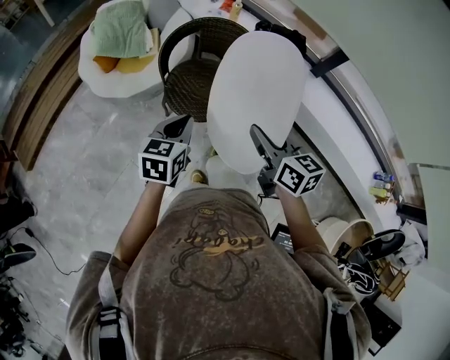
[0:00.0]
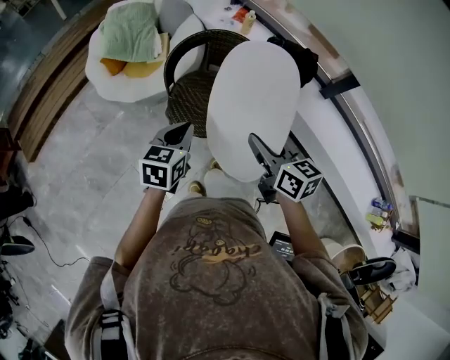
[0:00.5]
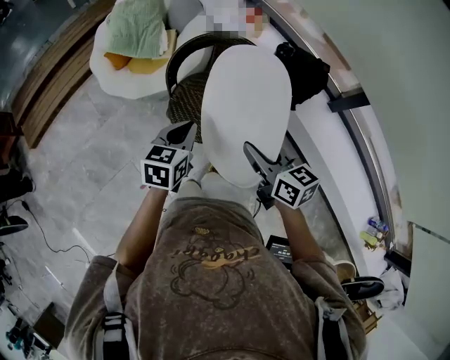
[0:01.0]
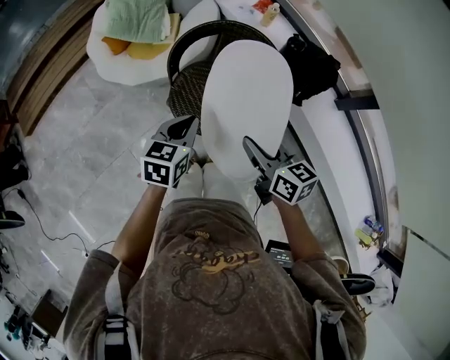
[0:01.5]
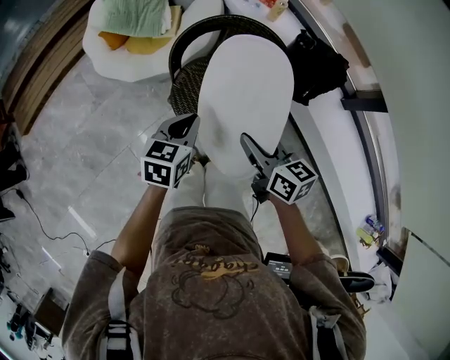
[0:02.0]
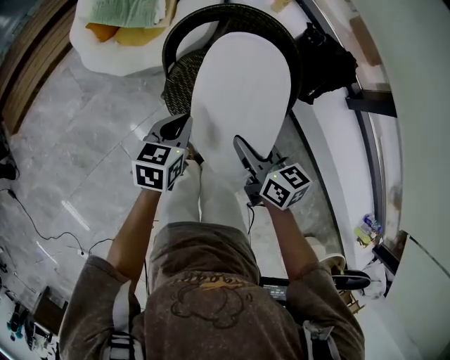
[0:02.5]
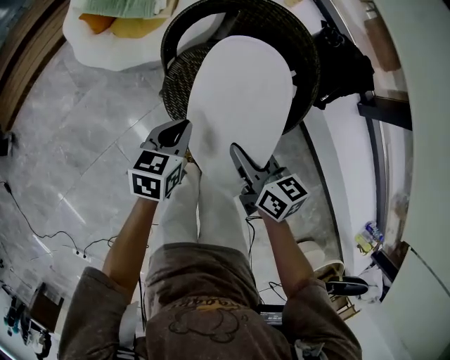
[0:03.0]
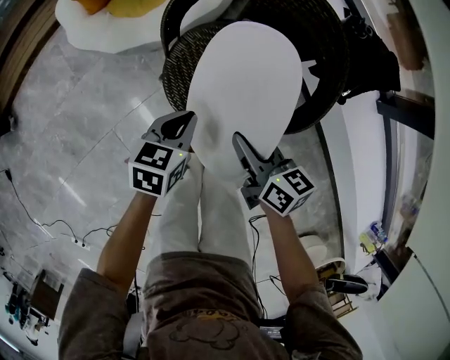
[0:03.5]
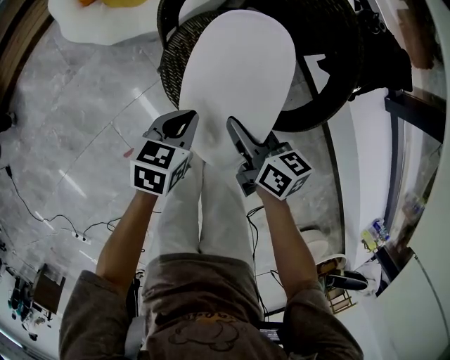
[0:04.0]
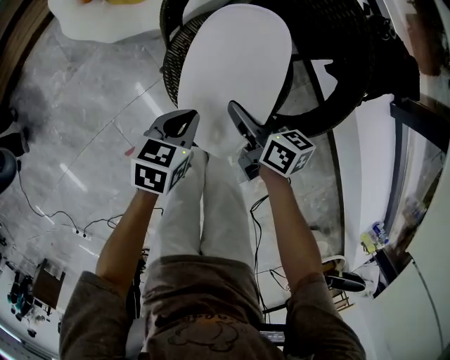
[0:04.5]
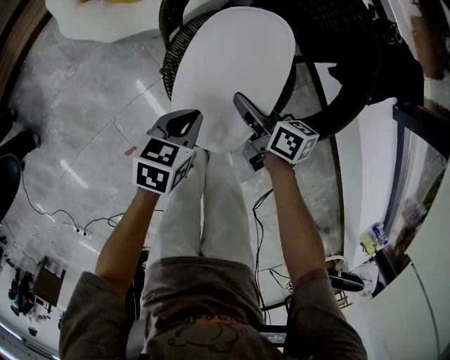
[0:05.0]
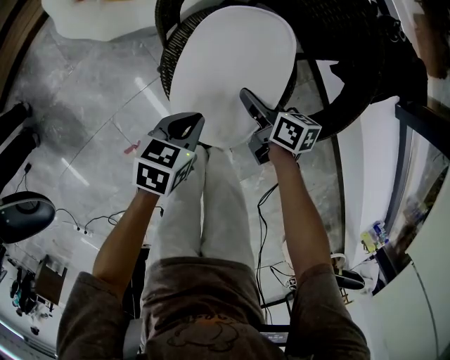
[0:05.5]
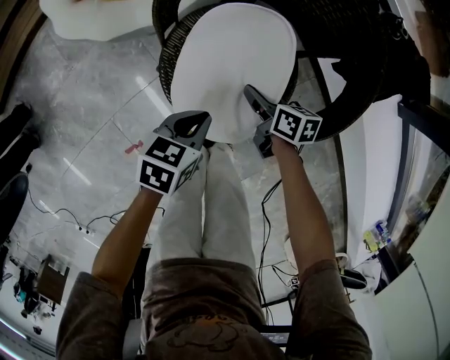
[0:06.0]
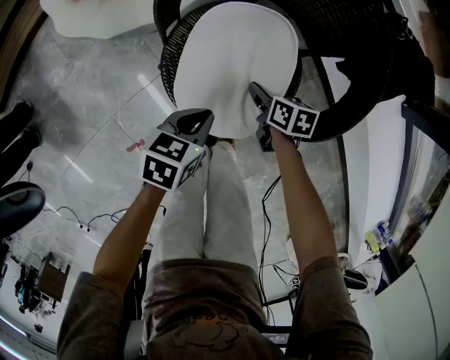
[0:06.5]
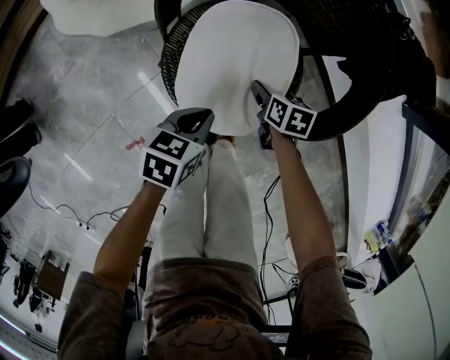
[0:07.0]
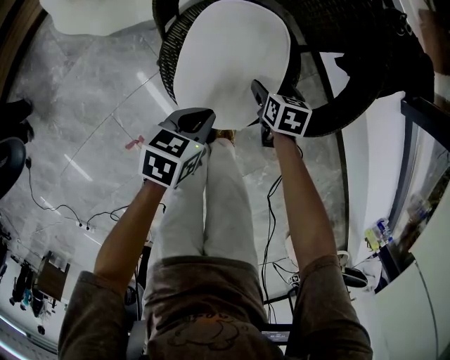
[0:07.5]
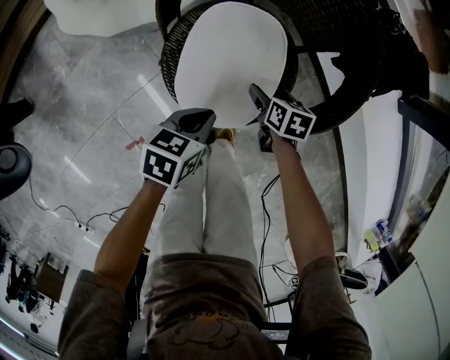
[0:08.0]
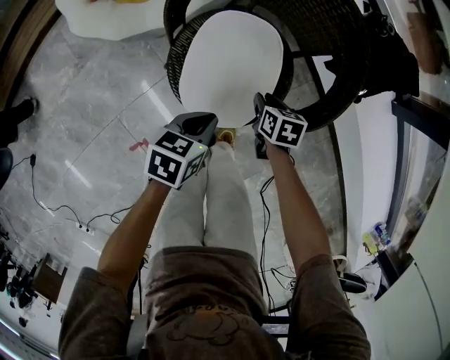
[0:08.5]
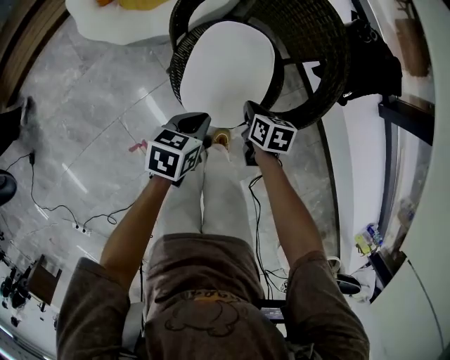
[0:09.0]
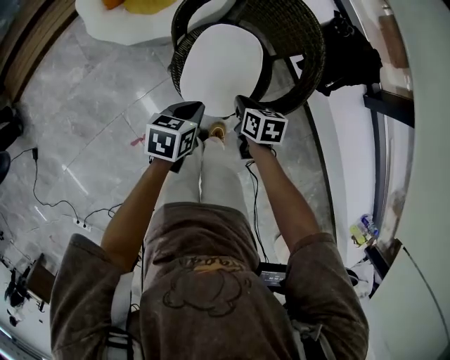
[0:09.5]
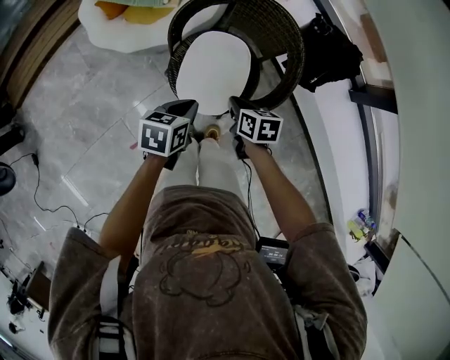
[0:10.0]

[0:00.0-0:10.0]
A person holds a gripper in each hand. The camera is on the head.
0:00.0 to 0:02.0: Both grippers travel together forward and downward, some 20 cm.
0:02.0 to 0:04.0: Both grippers move downward, roughly 25 cm.
0:04.0 to 0:06.0: The left gripper changes place by about 5 cm, while the right gripper goes some 15 cm downward and forward.
0:06.0 to 0:08.0: The right gripper travels to the right by approximately 5 cm, changes its angle by roughly 20 degrees, and opens up.
0:08.0 to 0:10.0: The two grippers go some 25 cm upward. The right gripper closes its fingers.

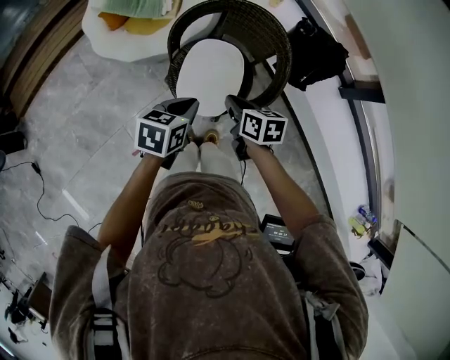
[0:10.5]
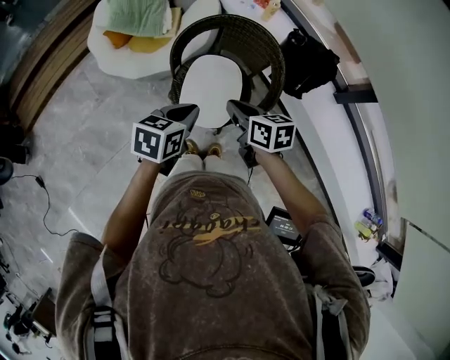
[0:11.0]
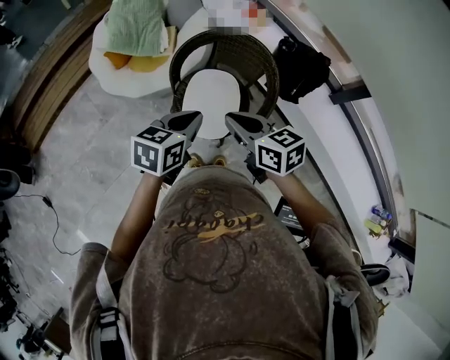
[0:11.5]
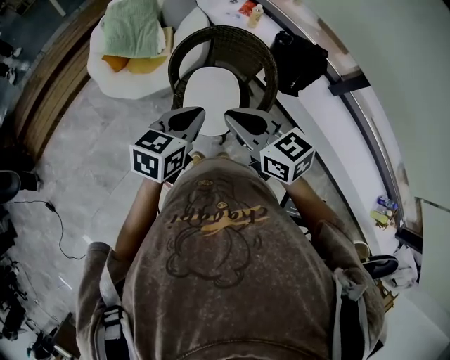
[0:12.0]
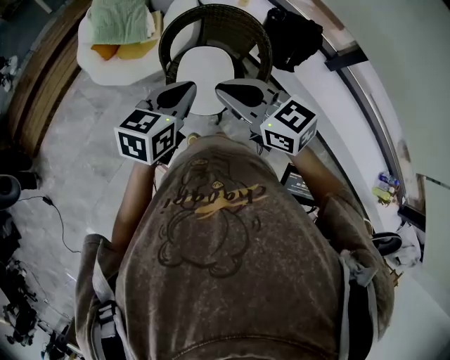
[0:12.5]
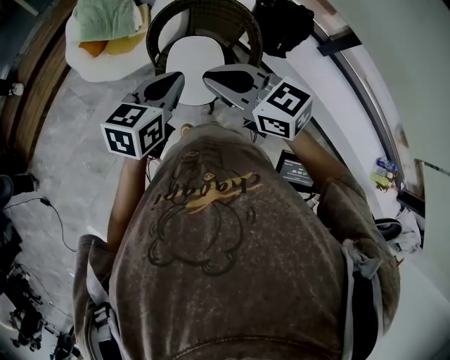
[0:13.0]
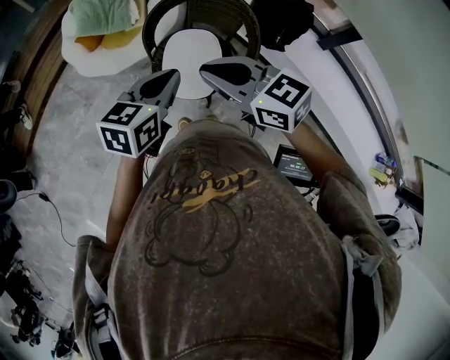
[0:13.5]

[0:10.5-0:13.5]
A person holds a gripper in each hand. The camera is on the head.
0:10.5 to 0:12.0: The right gripper moves upward, approximately 20 cm, and rotates about 40 degrees, while the left gripper moves upward, approximately 15 cm, and changes its angle by about 20 degrees.
0:12.0 to 0:13.5: The grippers make only small movements.

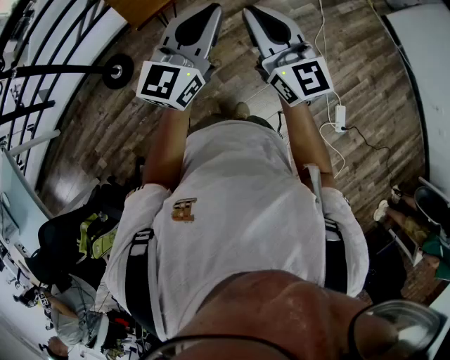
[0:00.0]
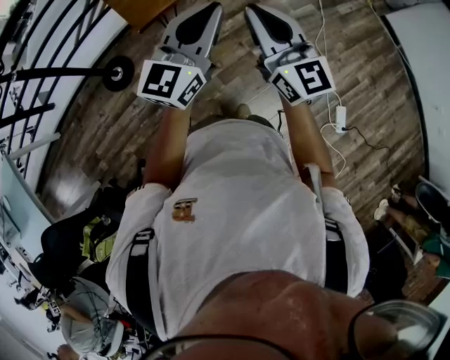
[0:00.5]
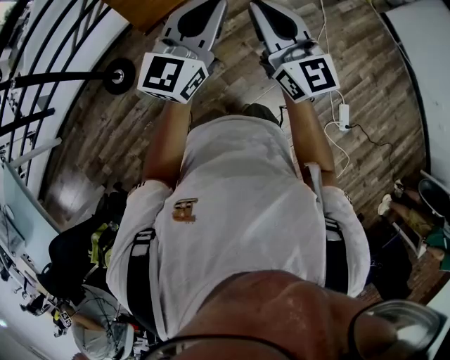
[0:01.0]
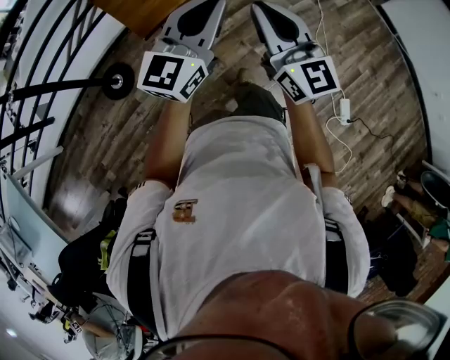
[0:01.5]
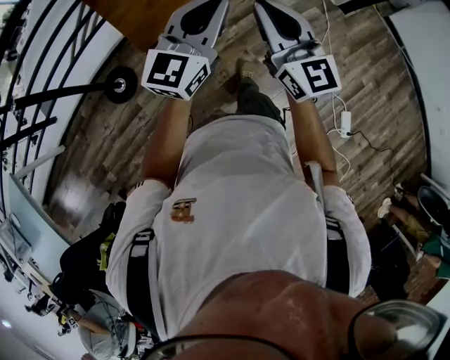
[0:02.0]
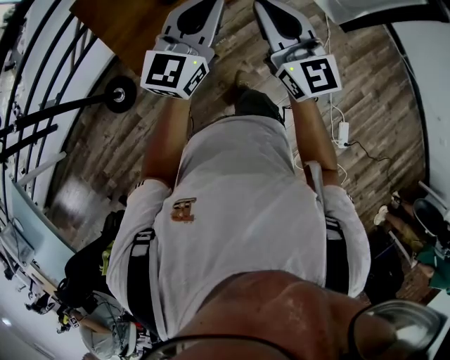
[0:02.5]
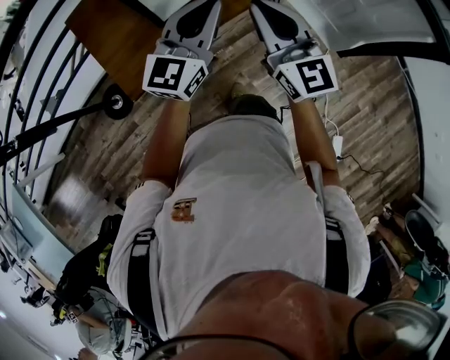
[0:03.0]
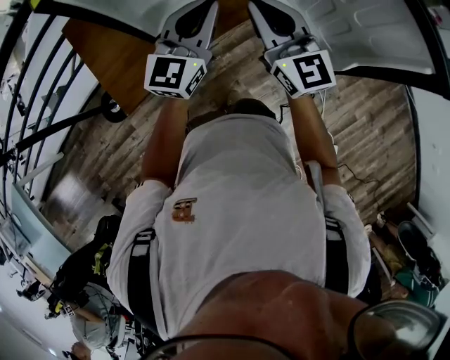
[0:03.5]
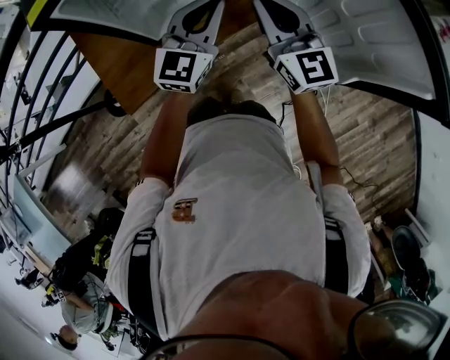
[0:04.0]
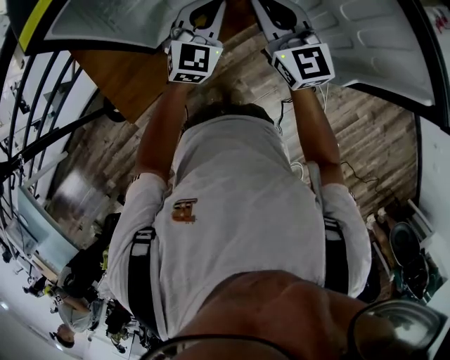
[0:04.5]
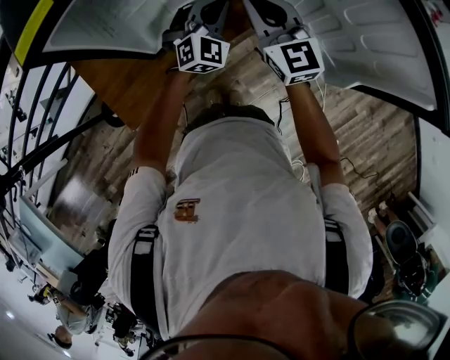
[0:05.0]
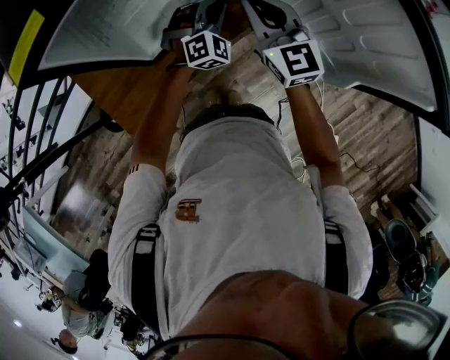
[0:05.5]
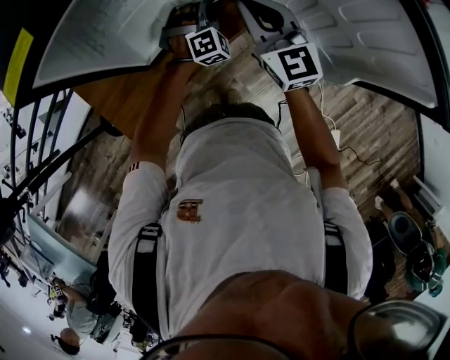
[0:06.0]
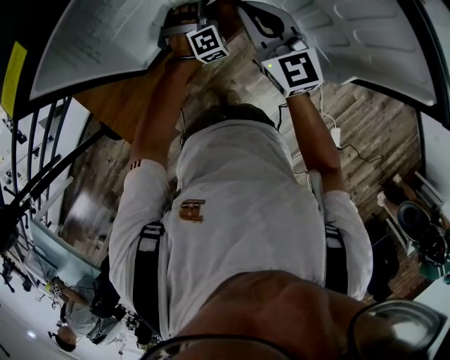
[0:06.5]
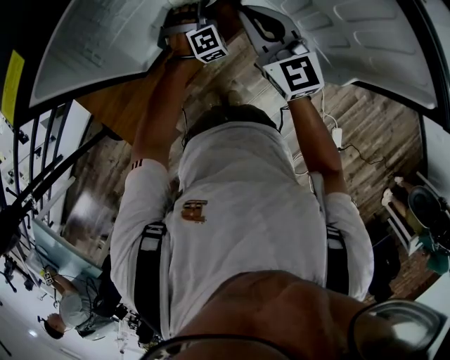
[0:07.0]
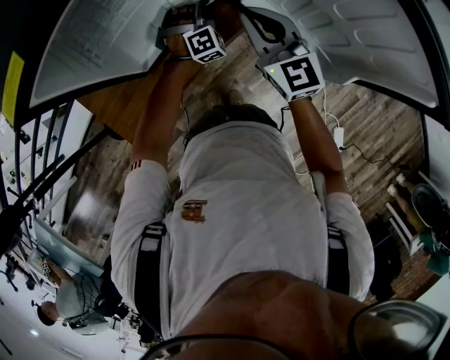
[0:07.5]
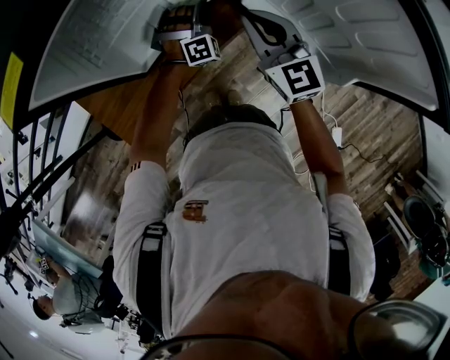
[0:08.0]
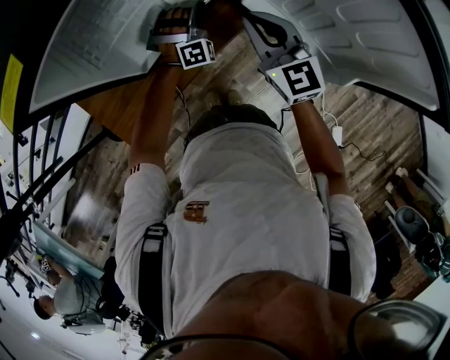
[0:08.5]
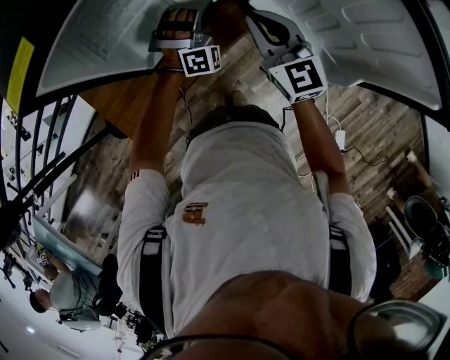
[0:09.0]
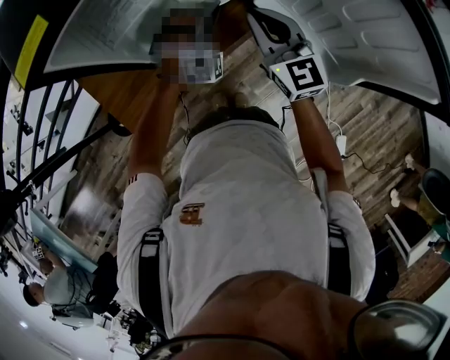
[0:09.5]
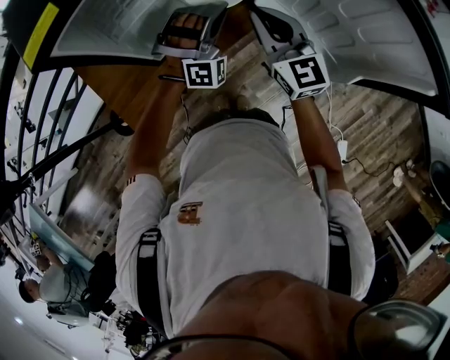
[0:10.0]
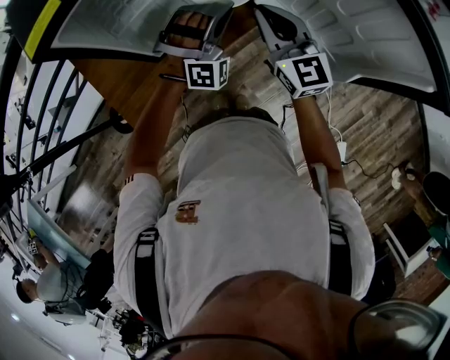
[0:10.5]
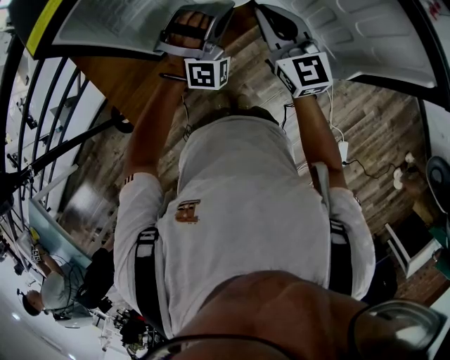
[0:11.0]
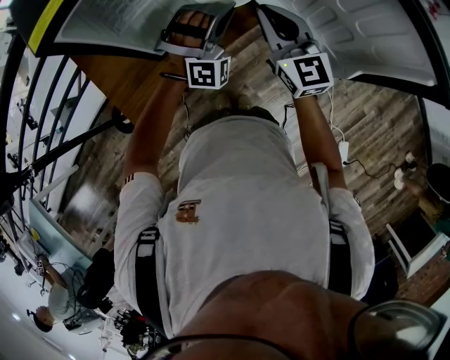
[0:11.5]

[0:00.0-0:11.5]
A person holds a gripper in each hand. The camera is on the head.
0:00.0 to 0:02.0: Both grippers move forward, about 15 cm.
0:02.0 to 0:04.0: Both grippers are carried forward, about 40 cm.
0:04.0 to 0:06.0: The right gripper travels forward by about 5 cm. The left gripper travels downward and forward by roughly 25 cm, rolls clockwise, seen from behind, by approximately 50 degrees, and opens.
0:06.0 to 0:07.5: The grippers stay close to where they were, moving slightly.
0:07.5 to 0:09.5: The left gripper heads upward and backward, covering approximately 15 cm, and changes its angle by about 30 degrees.
0:09.5 to 0:11.5: The left gripper heads backward, covering roughly 5 cm.

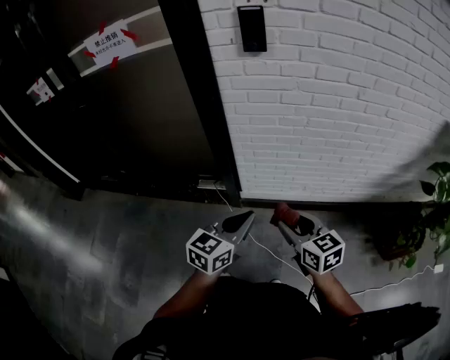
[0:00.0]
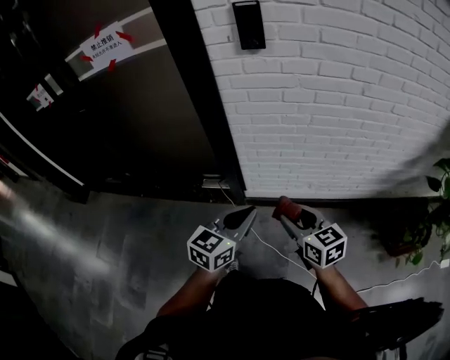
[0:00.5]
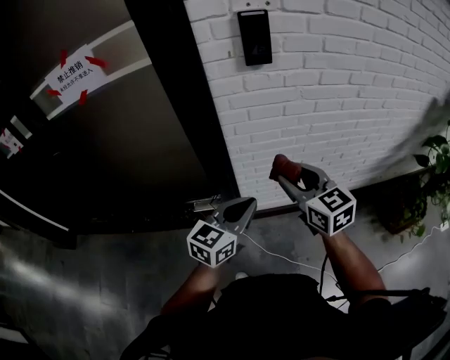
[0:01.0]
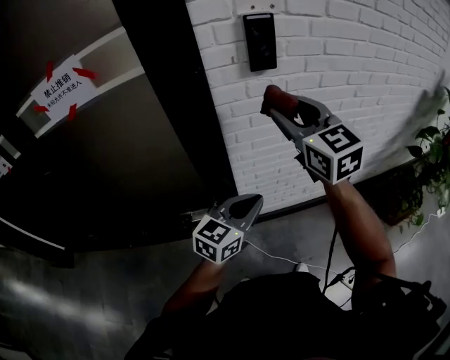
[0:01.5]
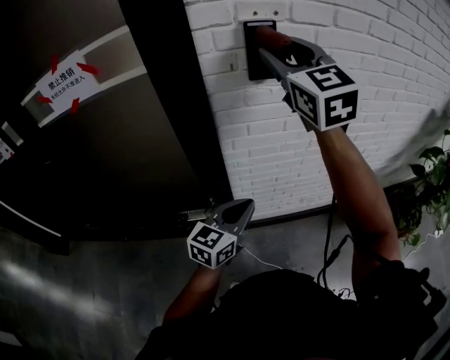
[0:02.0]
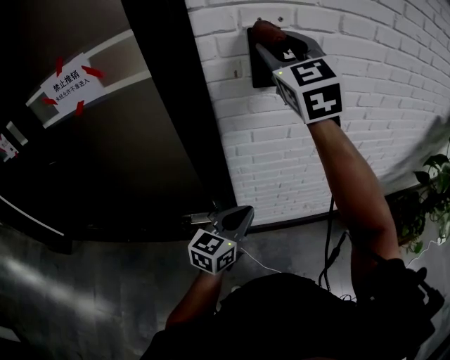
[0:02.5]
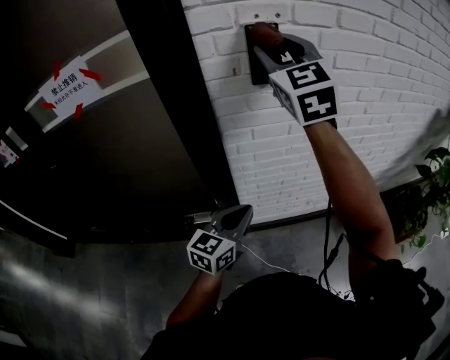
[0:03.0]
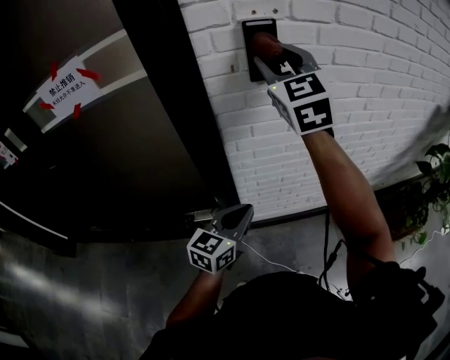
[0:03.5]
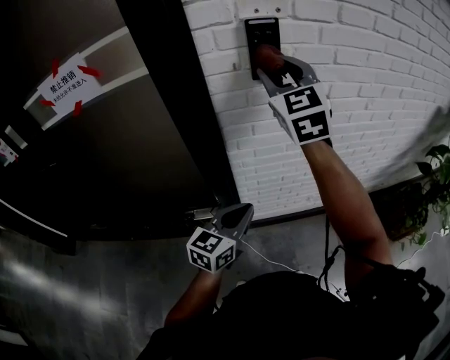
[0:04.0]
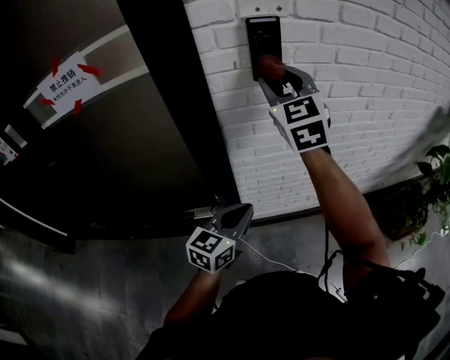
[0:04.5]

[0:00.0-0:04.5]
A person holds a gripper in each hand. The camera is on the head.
0:00.0 to 0:02.0: The right gripper shifts approximately 50 cm upward and forward, and changes its angle by roughly 50 degrees. Meanwhile the left gripper is displaced forward and to the left by about 20 cm.
0:02.0 to 0:04.5: The right gripper moves downward, approximately 10 cm.
